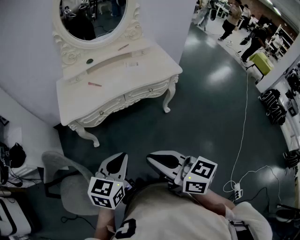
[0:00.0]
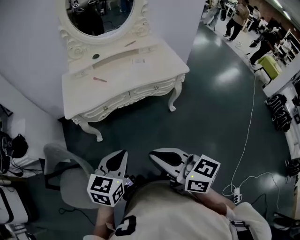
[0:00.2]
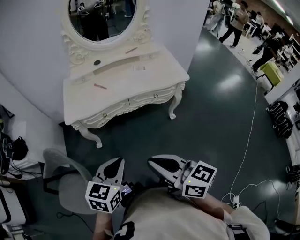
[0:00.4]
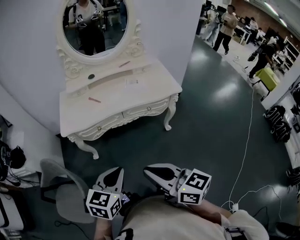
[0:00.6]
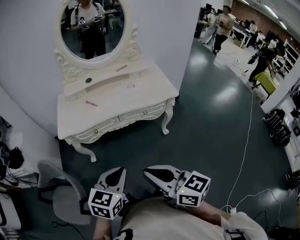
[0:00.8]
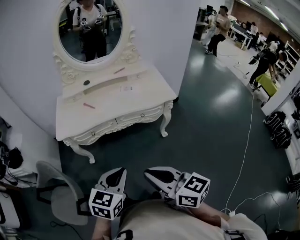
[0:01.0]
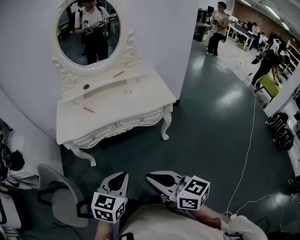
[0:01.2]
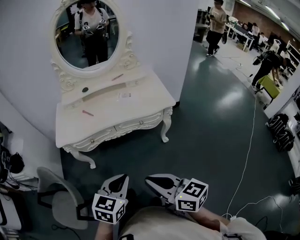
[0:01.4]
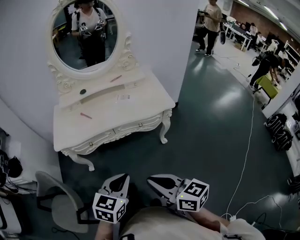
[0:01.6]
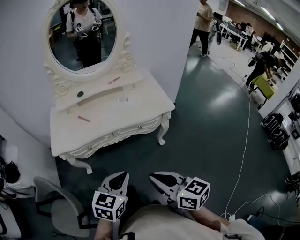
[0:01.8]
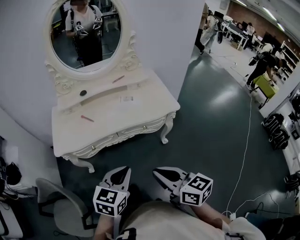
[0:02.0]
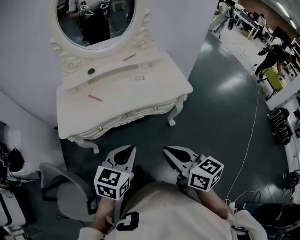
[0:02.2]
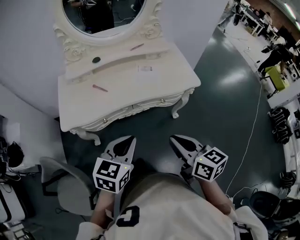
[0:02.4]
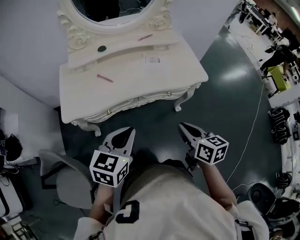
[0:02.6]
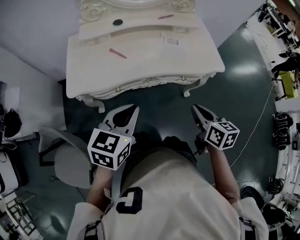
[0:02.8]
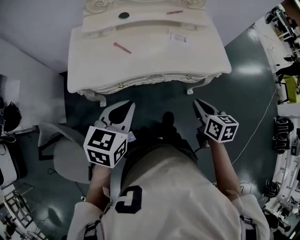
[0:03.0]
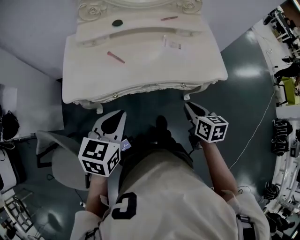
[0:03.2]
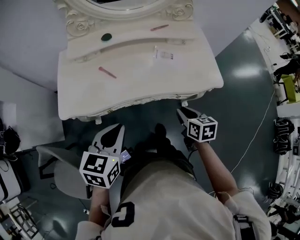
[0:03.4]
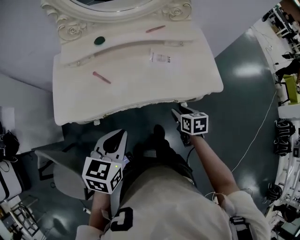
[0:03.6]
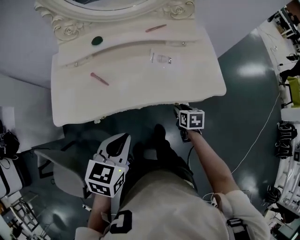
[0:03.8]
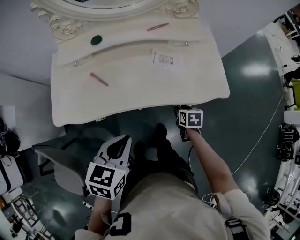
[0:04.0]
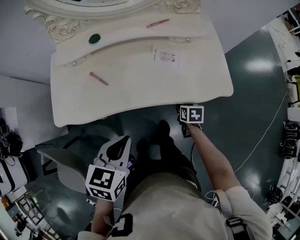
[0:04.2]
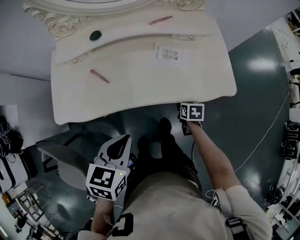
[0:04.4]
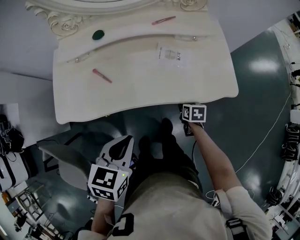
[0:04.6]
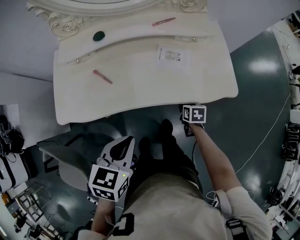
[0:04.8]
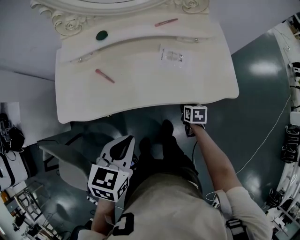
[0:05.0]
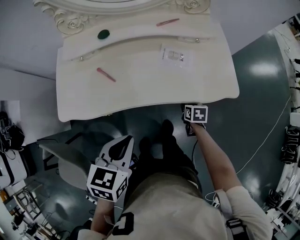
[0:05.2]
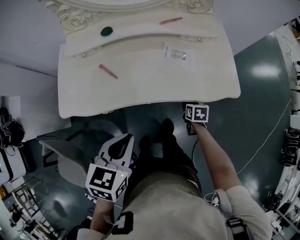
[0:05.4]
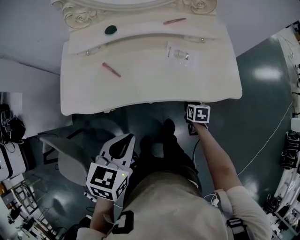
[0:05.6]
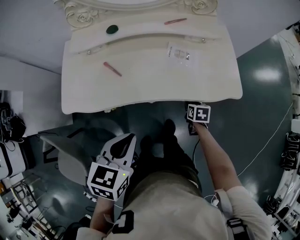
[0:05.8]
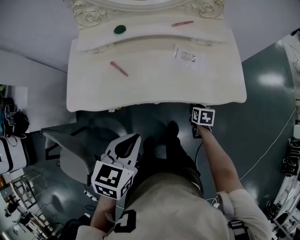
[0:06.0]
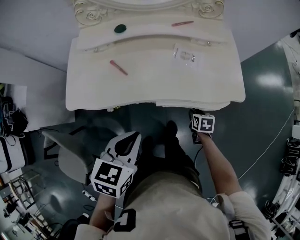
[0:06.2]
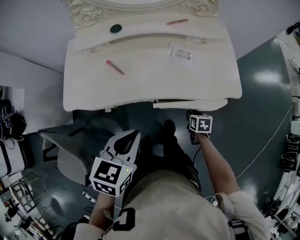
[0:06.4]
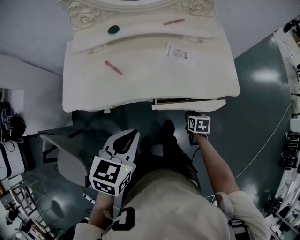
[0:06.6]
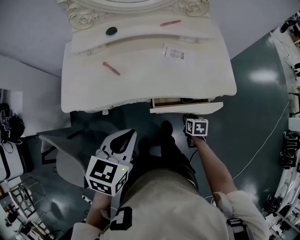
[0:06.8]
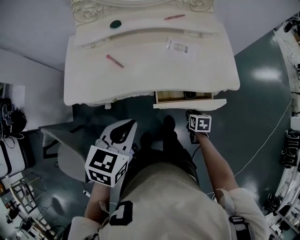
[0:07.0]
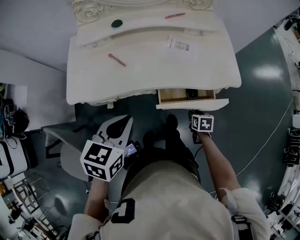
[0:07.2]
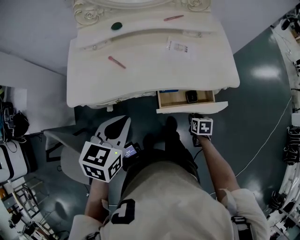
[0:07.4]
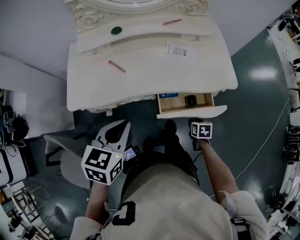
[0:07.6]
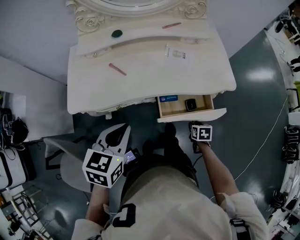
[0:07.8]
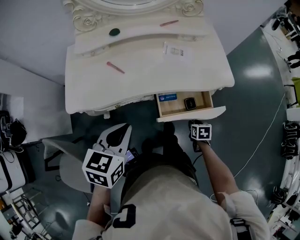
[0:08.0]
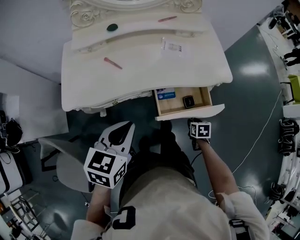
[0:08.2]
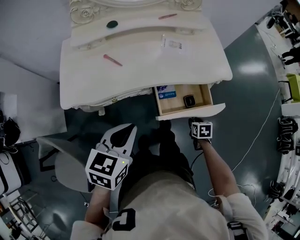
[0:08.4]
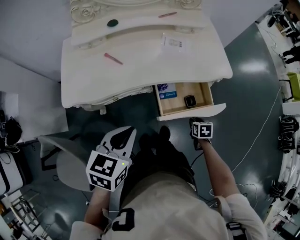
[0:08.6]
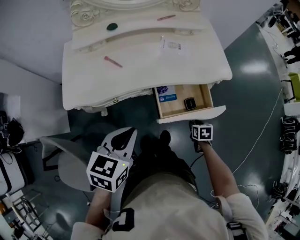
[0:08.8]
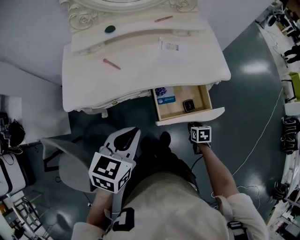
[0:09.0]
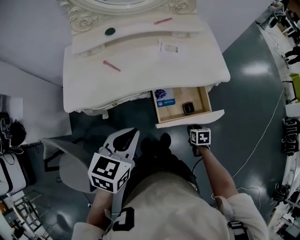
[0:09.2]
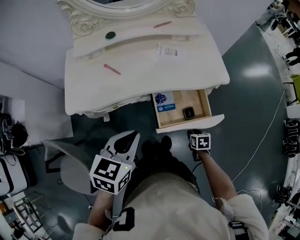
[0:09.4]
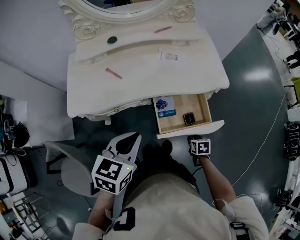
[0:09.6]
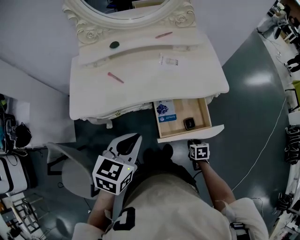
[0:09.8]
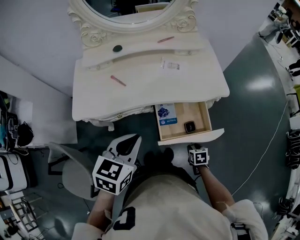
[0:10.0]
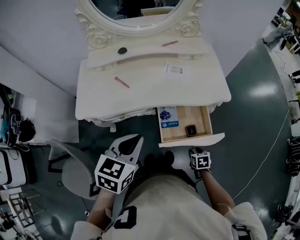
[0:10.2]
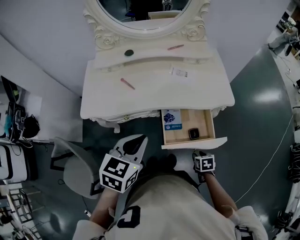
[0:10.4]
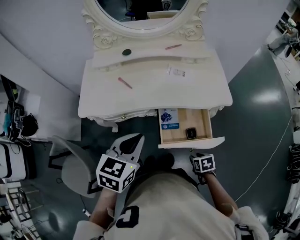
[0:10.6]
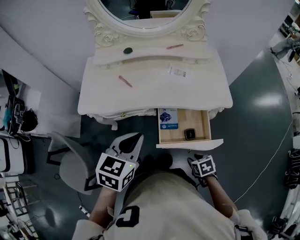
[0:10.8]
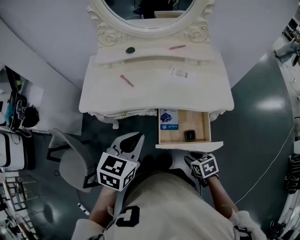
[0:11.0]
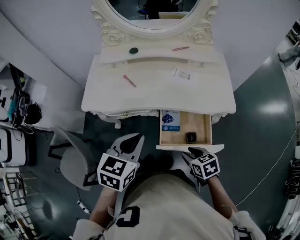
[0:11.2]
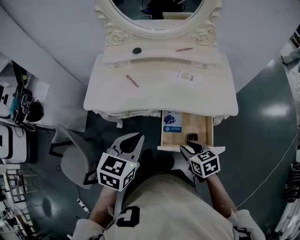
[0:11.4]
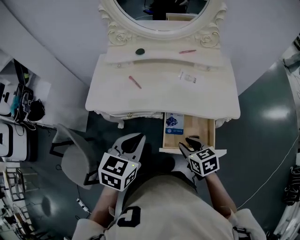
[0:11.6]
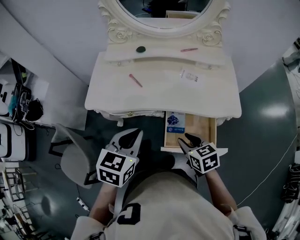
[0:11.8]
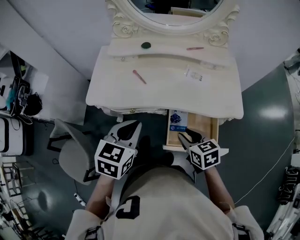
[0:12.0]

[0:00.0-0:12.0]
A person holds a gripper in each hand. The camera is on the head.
0:00.0 to 0:01.6: Both grippers travel together to the right, roughly 15 cm.
0:01.6 to 0:03.0: The right gripper is displaced forward and downward by approximately 30 cm, and turns by approximately 30 degrees; the left gripper shifts about 25 cm to the left and forward.
0:03.0 to 0:04.4: The left gripper shifts about 15 cm to the right, forward and downward, while the right gripper heads downward and forward, covering about 30 cm, turns by roughly 20 degrees, and opens its fingers.
0:04.4 to 0:06.0: The grippers move only a little.
0:06.0 to 0:07.6: The right gripper is displaced backward by about 15 cm.
0:07.6 to 0:09.0: The left gripper moves approximately 5 cm, while the right gripper shifts some 5 cm backward.
0:09.0 to 0:10.4: The right gripper ends up about 5 cm from where it was.
0:10.4 to 0:12.0: The left gripper shifts roughly 5 cm forward, while the right gripper goes roughly 25 cm upward, forward and to the left, and rotates roughly 30 degrees.

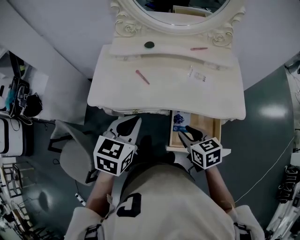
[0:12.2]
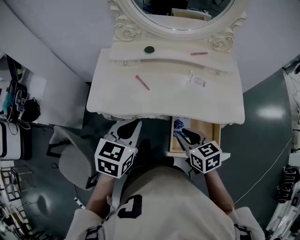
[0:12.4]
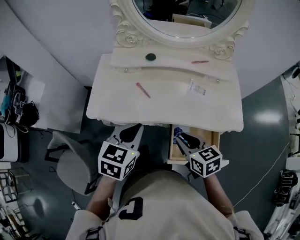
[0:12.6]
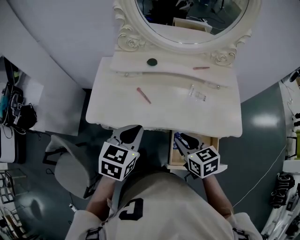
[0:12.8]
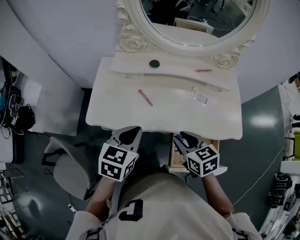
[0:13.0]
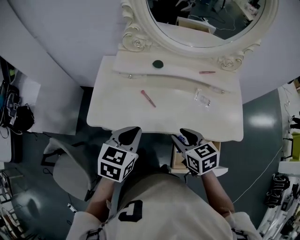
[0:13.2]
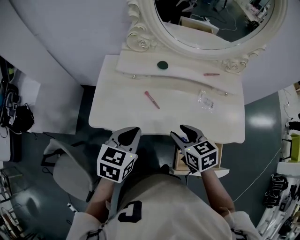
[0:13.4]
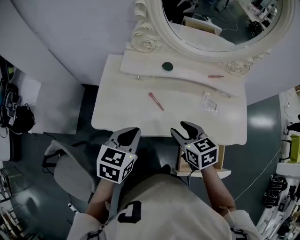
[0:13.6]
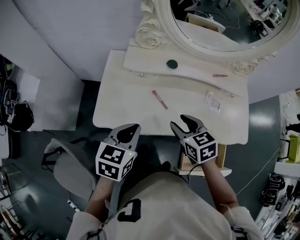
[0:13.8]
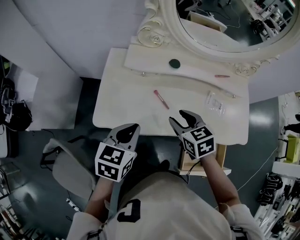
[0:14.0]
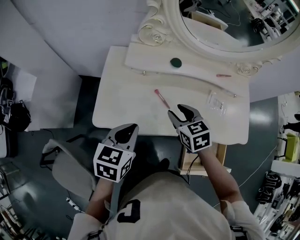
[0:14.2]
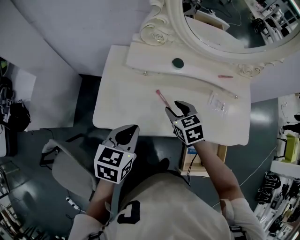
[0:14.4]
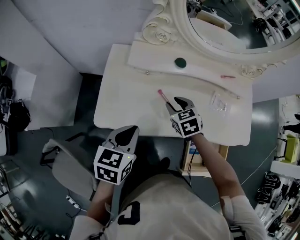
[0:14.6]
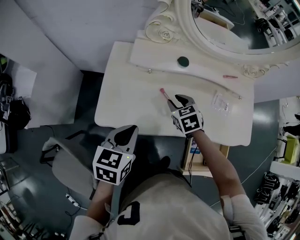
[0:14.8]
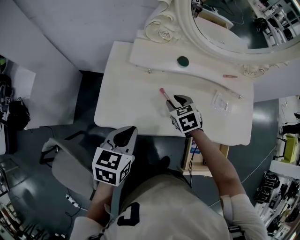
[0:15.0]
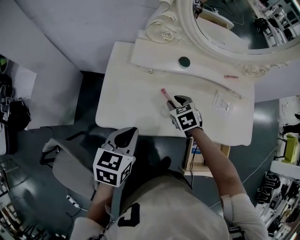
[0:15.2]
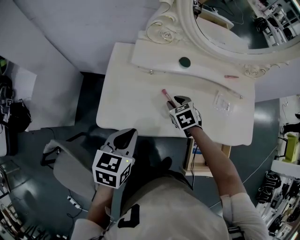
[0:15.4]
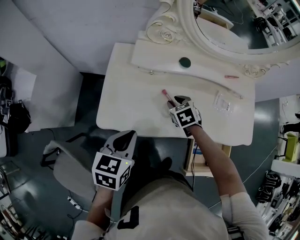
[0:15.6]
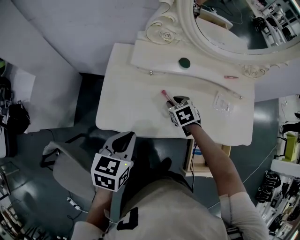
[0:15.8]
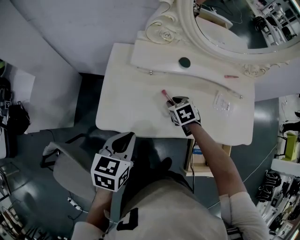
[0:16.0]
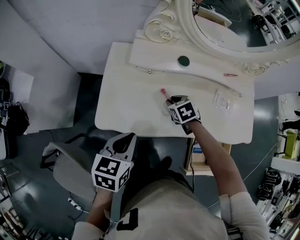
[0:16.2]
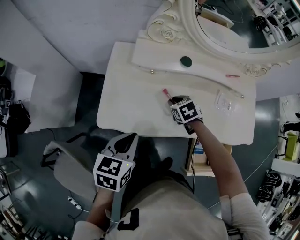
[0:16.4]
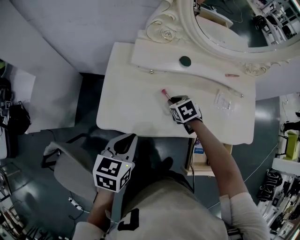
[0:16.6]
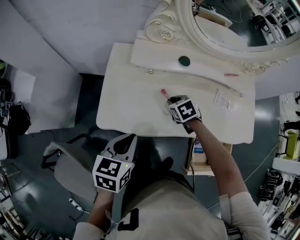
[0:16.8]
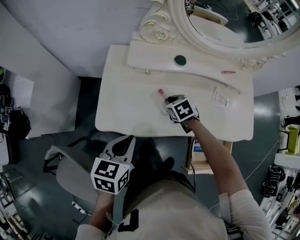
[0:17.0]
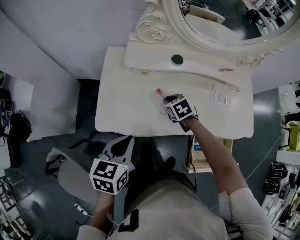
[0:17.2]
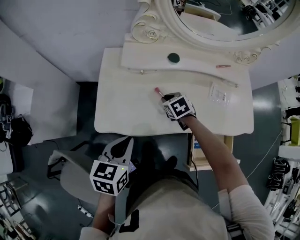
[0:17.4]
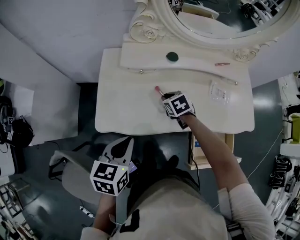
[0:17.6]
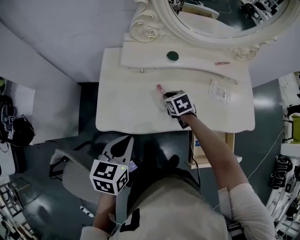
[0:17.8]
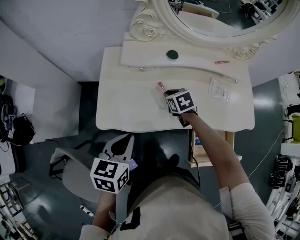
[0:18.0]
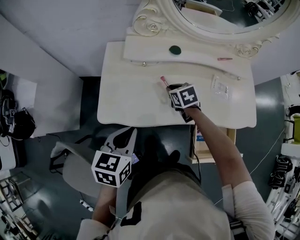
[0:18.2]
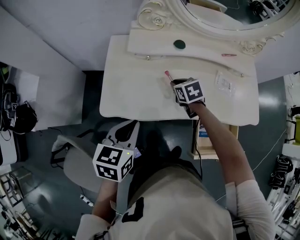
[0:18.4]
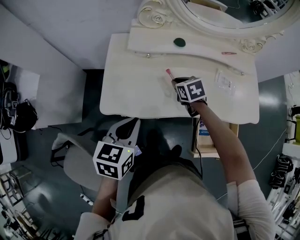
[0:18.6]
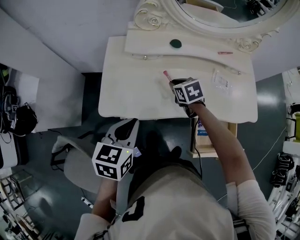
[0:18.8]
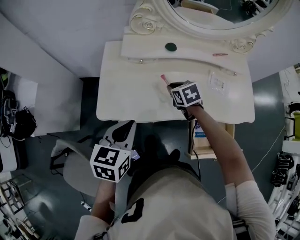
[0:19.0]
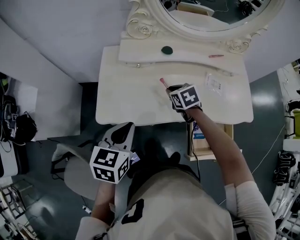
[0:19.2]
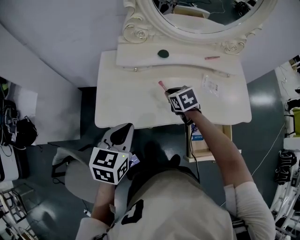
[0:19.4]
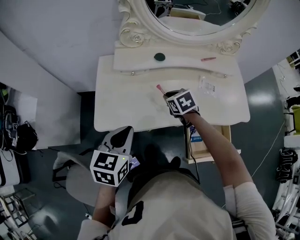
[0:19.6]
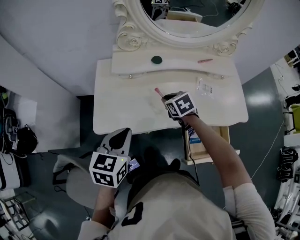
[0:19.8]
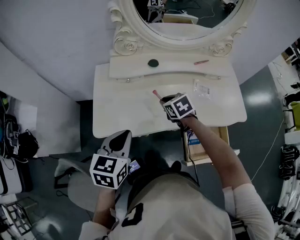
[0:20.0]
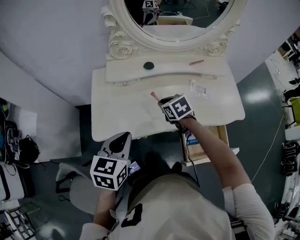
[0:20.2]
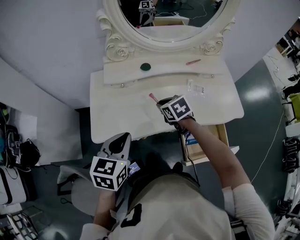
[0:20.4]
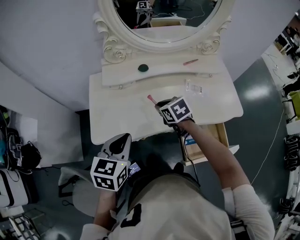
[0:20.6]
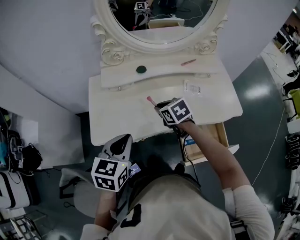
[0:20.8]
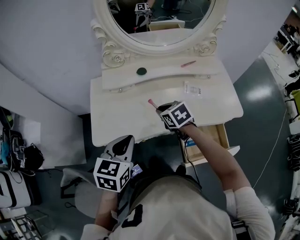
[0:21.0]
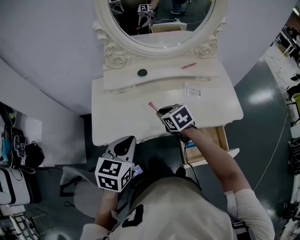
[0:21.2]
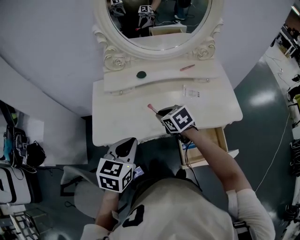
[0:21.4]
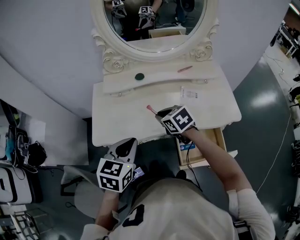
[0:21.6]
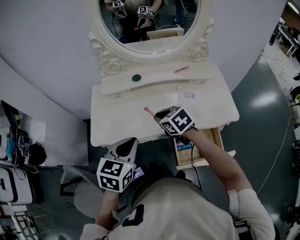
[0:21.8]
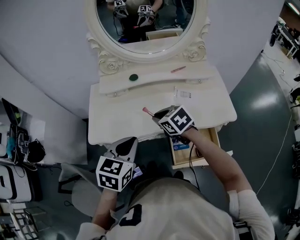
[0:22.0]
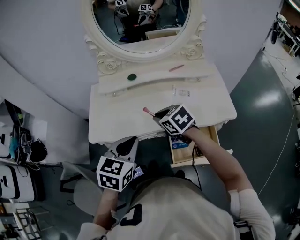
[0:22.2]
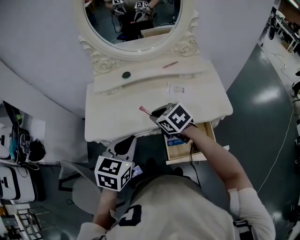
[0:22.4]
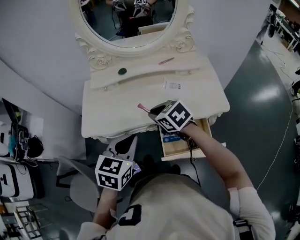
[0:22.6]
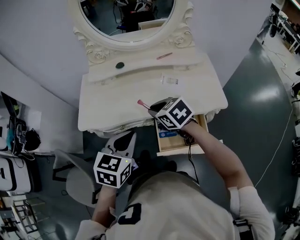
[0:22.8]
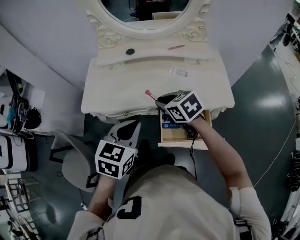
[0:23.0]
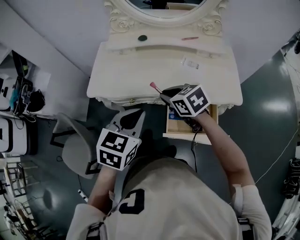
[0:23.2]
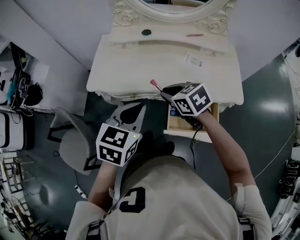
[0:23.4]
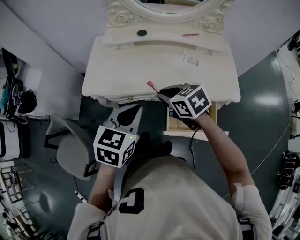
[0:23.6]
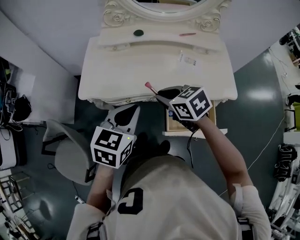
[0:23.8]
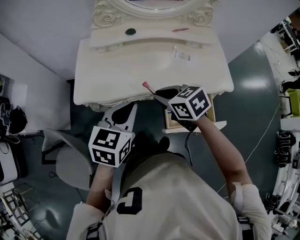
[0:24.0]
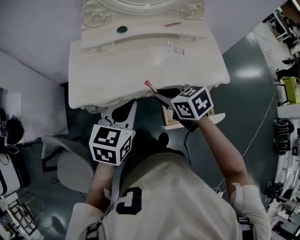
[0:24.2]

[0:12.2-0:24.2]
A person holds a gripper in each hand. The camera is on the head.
0:12.2 to 0:13.8: The two grippers go some 20 cm forward and to the left.
0:13.8 to 0:15.2: The left gripper moves roughly 5 cm. The right gripper travels downward and forward by some 15 cm.
0:15.2 to 0:18.2: The grippers stay close to where they were, moving slightly.
0:18.2 to 0:19.8: The right gripper changes place by roughly 5 cm.
0:19.8 to 0:21.2: The left gripper moves to the right, about 5 cm. Meanwhile the right gripper travels backward by approximately 5 cm.
0:21.2 to 0:22.6: The right gripper travels backward, to the right and upward by roughly 15 cm; the left gripper is displaced to the right and backward by roughly 15 cm.
0:22.6 to 0:24.2: Both grippers travel together to the left, roughly 5 cm.
